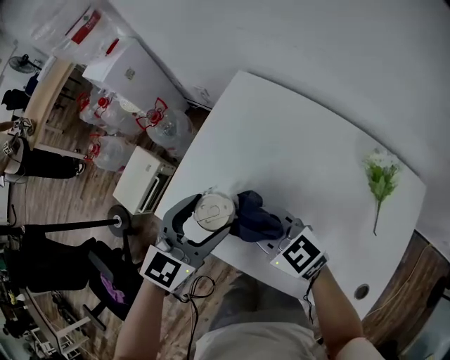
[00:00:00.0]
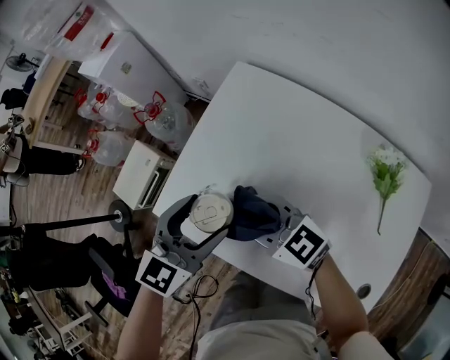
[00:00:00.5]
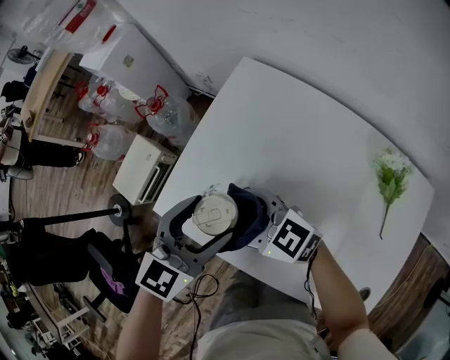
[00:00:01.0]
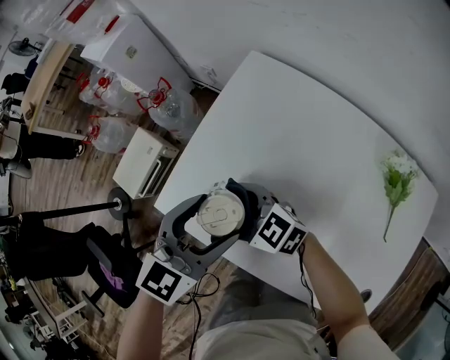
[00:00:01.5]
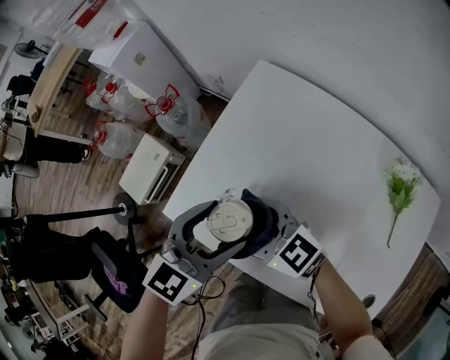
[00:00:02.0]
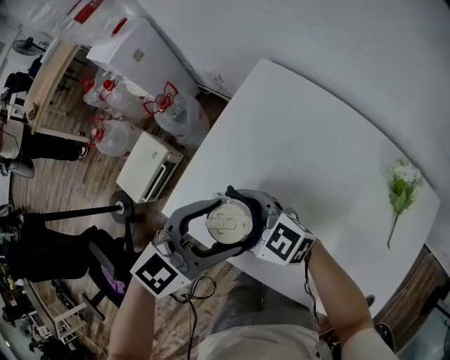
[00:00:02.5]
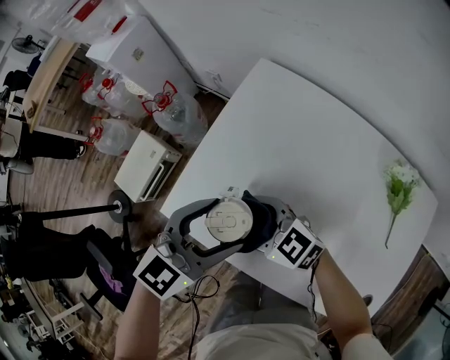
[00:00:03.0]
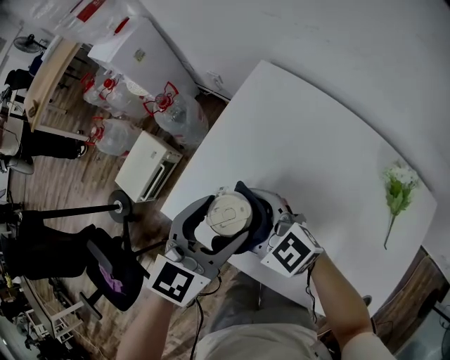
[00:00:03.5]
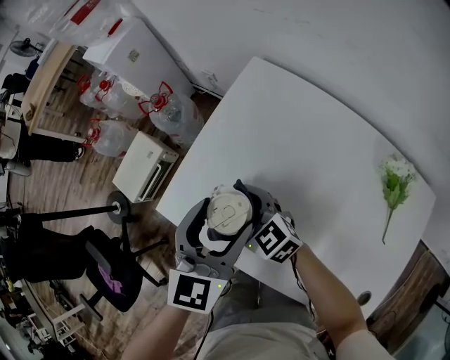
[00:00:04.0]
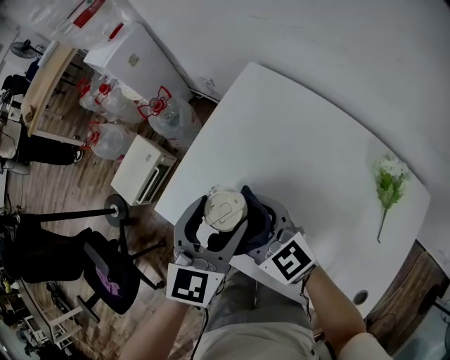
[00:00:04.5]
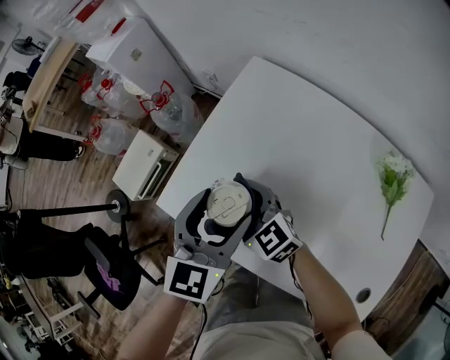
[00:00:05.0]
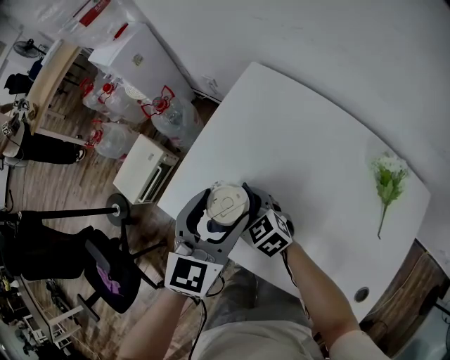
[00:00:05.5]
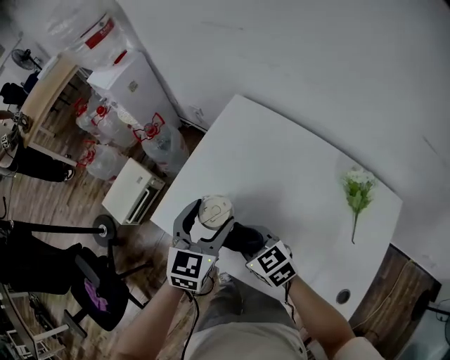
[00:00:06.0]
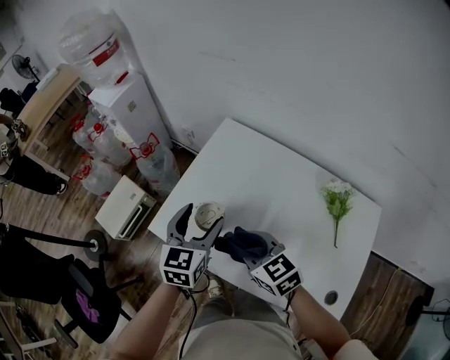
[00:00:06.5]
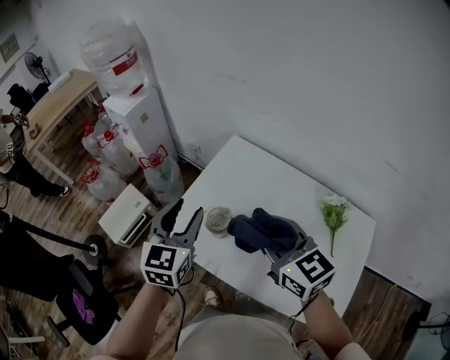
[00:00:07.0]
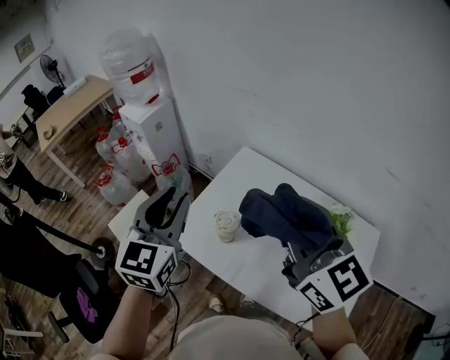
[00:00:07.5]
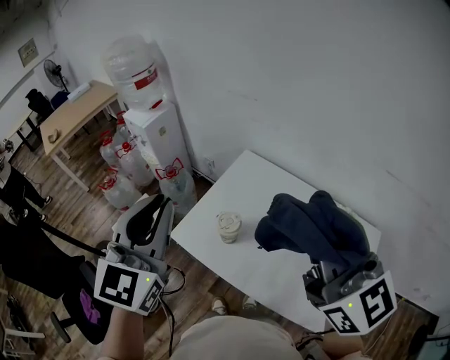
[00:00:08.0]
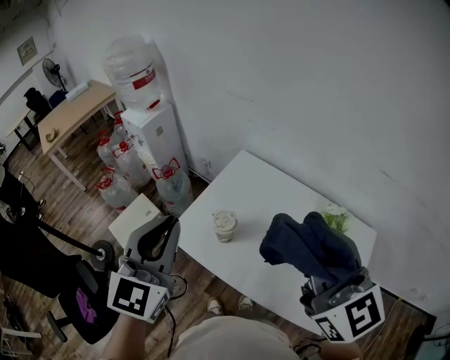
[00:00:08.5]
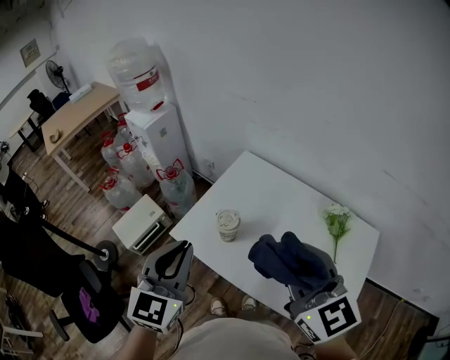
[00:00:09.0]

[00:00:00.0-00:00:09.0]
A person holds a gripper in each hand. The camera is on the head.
00:00:00.0 to 00:00:02.0: The right gripper goes roughly 5 cm to the left, and opens its fingers.
00:00:02.0 to 00:00:04.5: The left gripper rotates roughly 20 degrees. Meanwhile the right gripper goes up and down, about 10 cm each way, reversing 3 times.
00:00:04.5 to 00:00:07.0: The left gripper goes about 15 cm upward and to the left, and closes up. Meanwhile the right gripper shifts some 20 cm upward, swivels roughly 20 degrees, and closes its fingers.
00:00:07.0 to 00:00:09.0: The grippers both shift backward and upward by approximately 15 cm. The left gripper closes up.

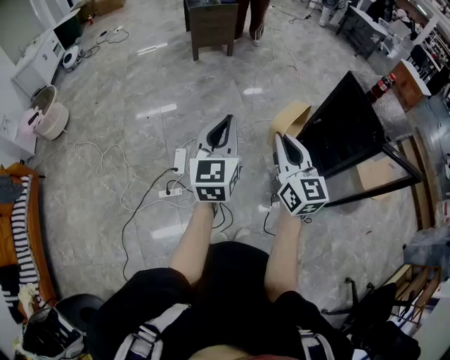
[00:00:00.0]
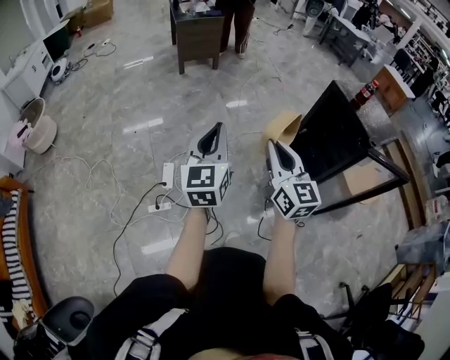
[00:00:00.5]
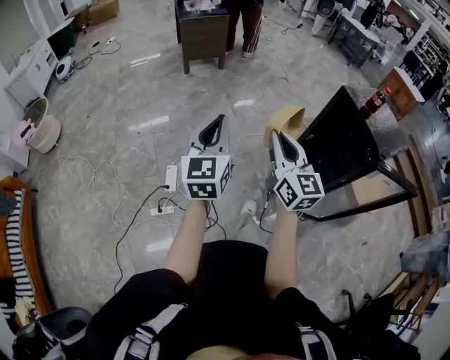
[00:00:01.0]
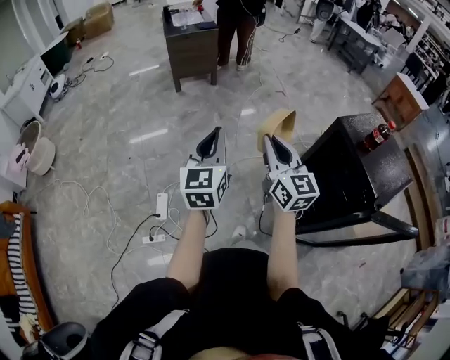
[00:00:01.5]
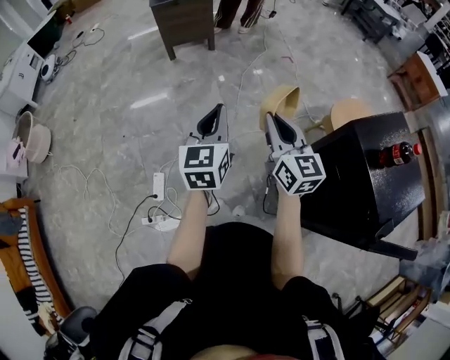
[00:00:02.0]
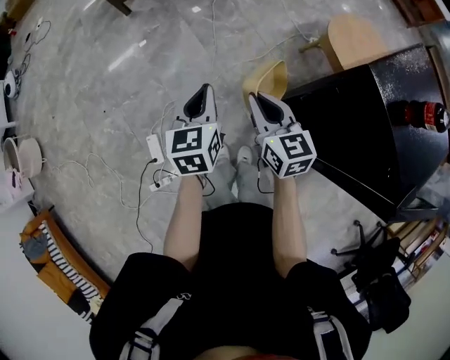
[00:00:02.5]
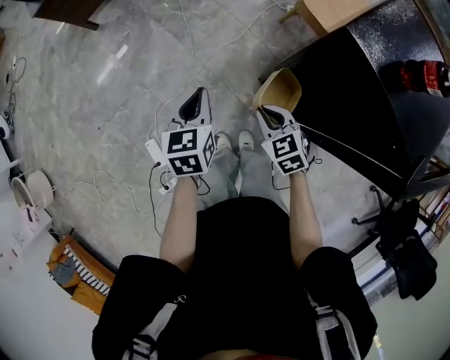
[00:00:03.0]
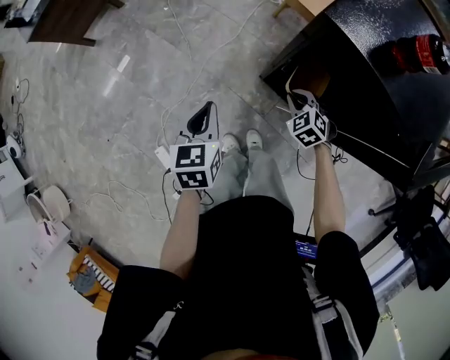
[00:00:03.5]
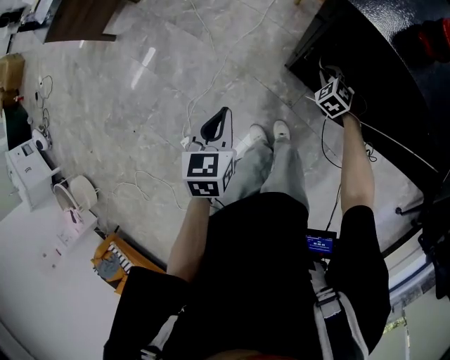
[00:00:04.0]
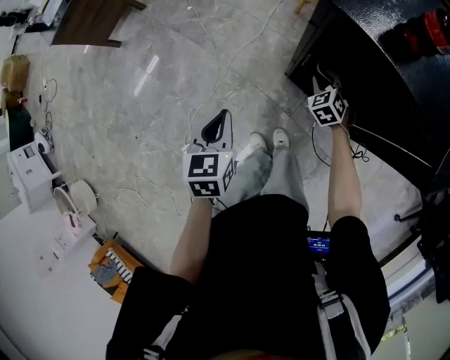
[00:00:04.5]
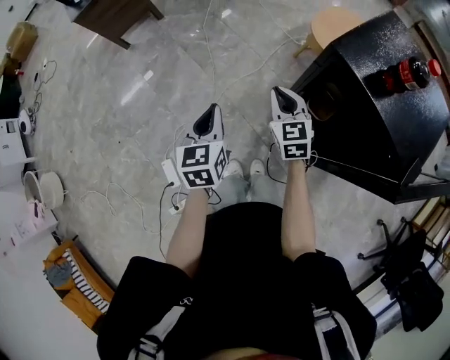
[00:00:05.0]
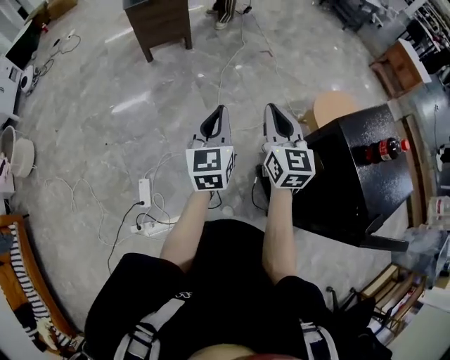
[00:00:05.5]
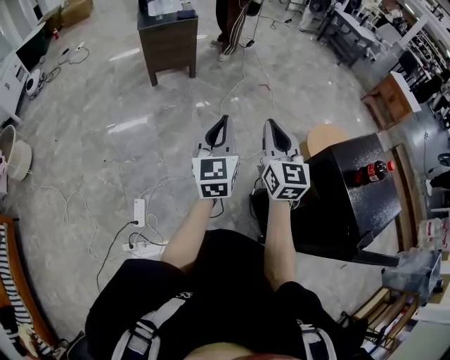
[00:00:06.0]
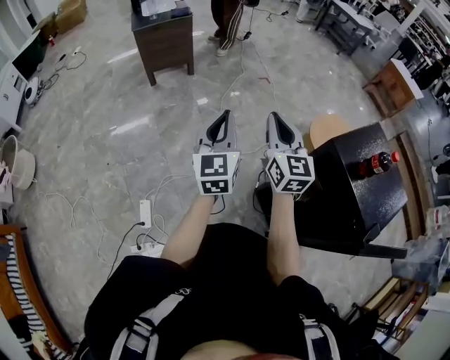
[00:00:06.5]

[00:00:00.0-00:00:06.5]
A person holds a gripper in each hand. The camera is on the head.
00:00:00.0 to 00:00:02.0: The pair of grippers is taken forward and to the right, approximately 50 cm.
00:00:02.0 to 00:00:04.5: The right gripper travels downward by some 40 cm, and points its fingers approximately 50 degrees further downward; the left gripper travels downward by some 20 cm, and points its fingers some 30 degrees further downward.
00:00:04.5 to 00:00:06.5: The left gripper travels upward by some 25 cm, and points its fingers about 40 degrees further upward. The right gripper shifts roughly 50 cm upward, and tilts its fingers approximately 50 degrees upward.

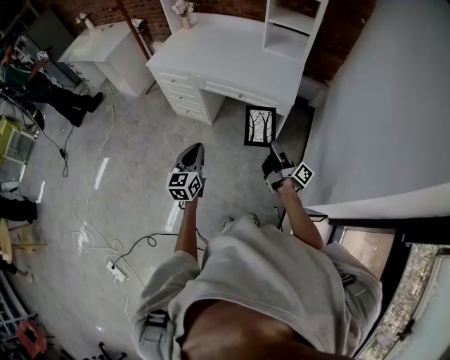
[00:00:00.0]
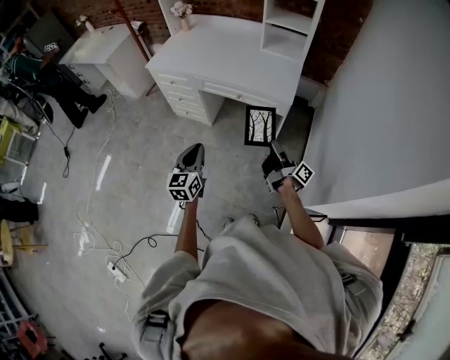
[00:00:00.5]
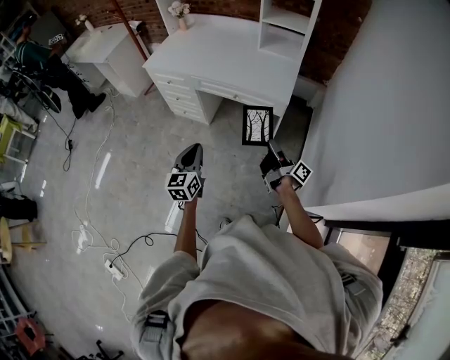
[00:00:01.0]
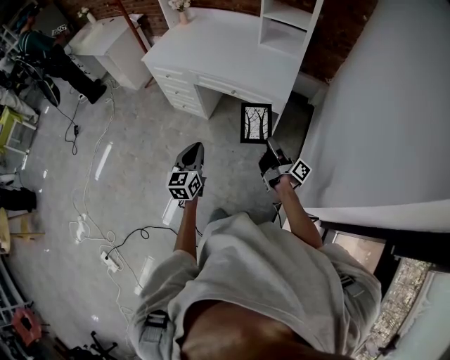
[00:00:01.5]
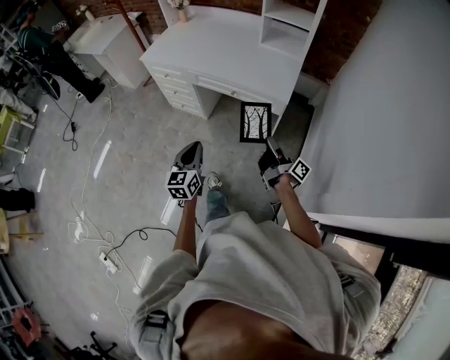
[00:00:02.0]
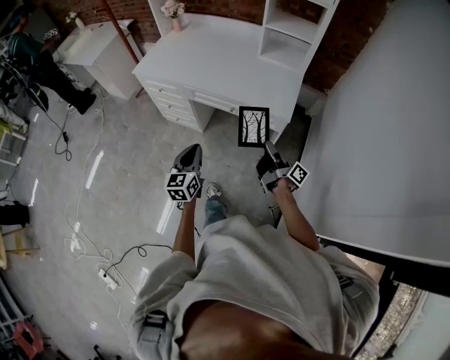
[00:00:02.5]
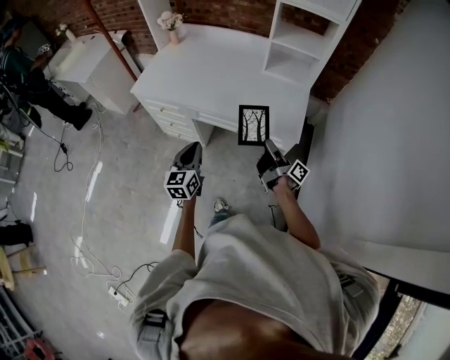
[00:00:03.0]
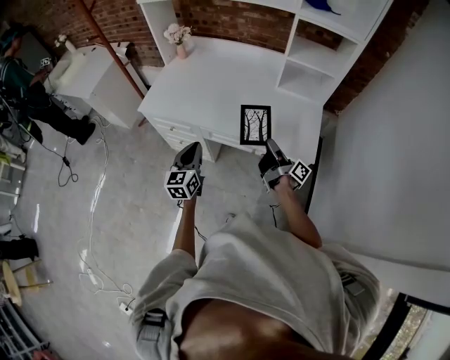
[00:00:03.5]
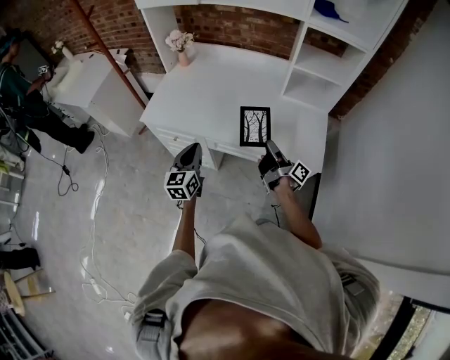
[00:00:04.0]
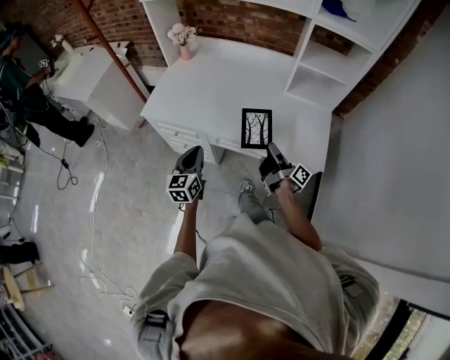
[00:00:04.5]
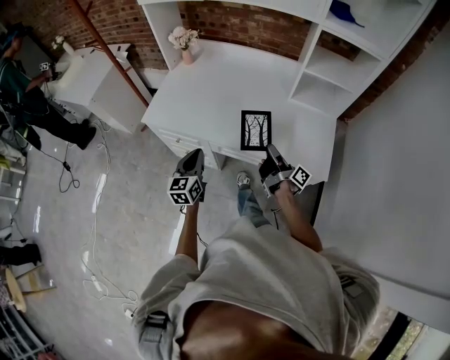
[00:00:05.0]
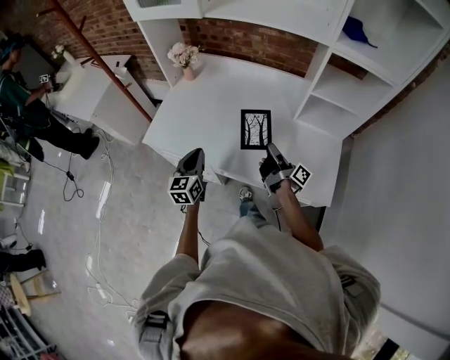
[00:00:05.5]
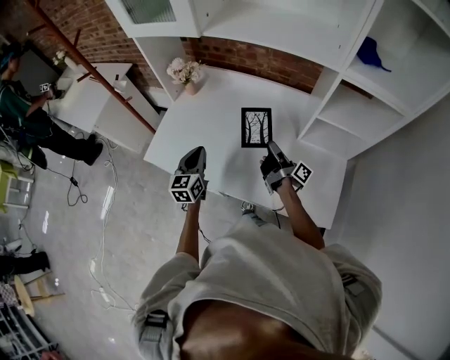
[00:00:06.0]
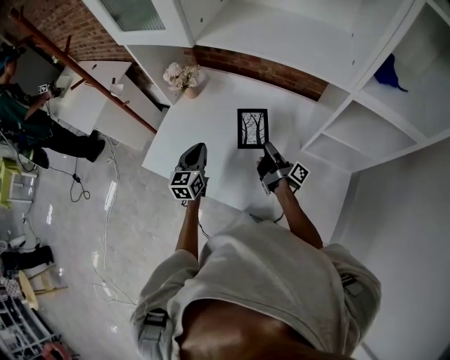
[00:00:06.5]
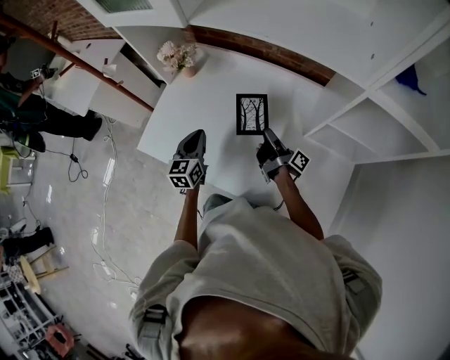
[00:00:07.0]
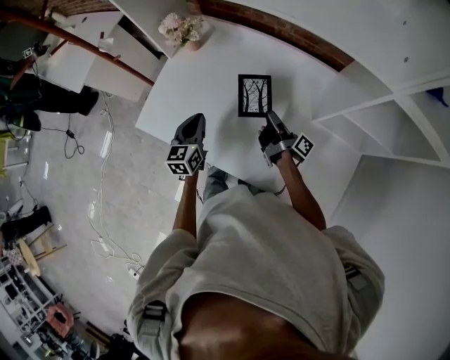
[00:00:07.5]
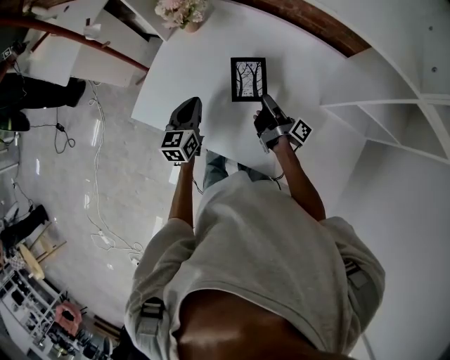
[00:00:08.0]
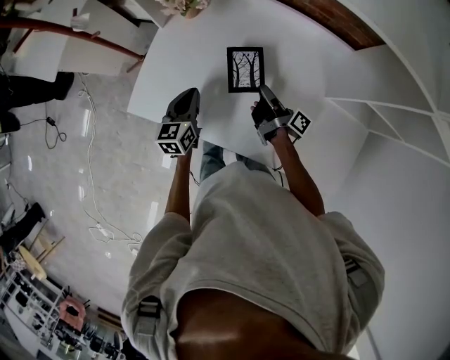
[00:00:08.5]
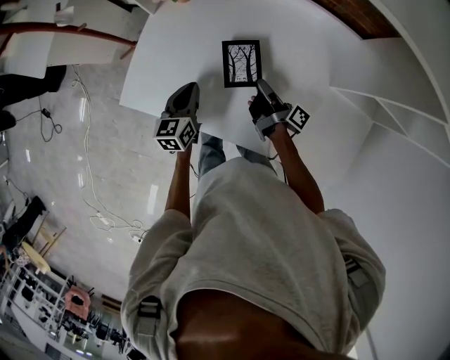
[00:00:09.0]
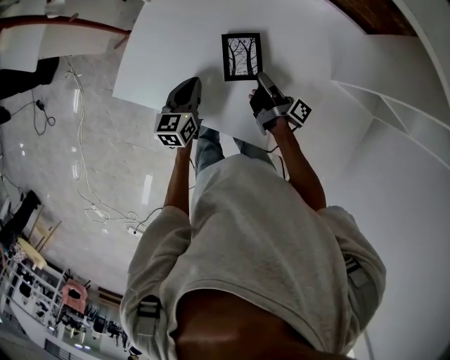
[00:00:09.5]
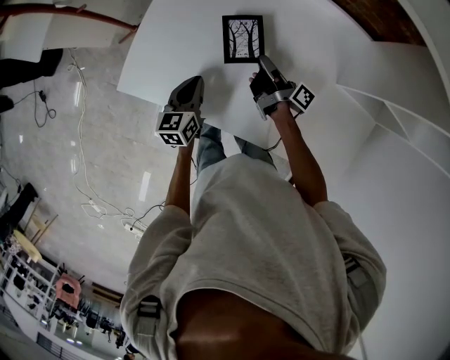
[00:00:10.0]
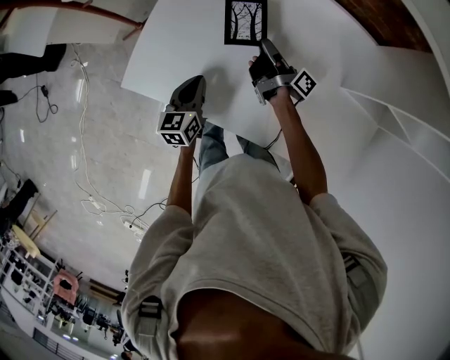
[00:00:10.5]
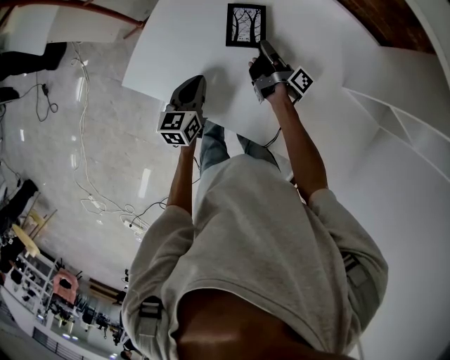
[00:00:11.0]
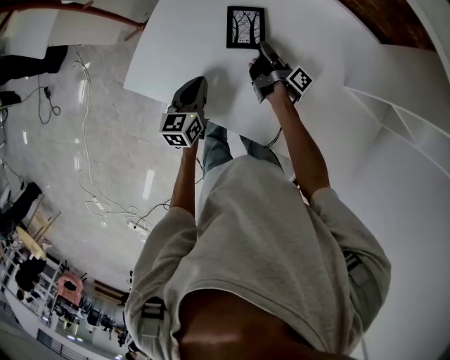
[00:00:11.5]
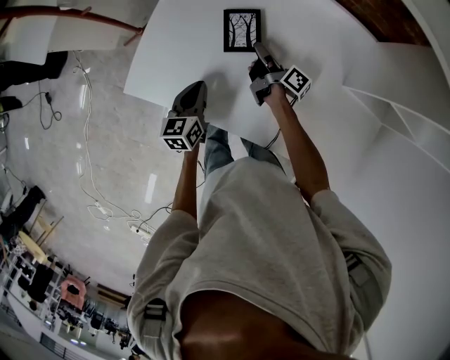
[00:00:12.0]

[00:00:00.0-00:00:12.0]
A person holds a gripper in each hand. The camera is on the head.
00:00:00.0 to 00:00:02.0: The left gripper shifts by some 5 cm.
00:00:02.0 to 00:00:04.0: The left gripper ends up approximately 40 cm from where it was.
00:00:04.0 to 00:00:06.0: The left gripper moves approximately 25 cm.
00:00:06.0 to 00:00:08.0: The left gripper ends up roughly 10 cm from where it was.
00:00:08.0 to 00:00:10.0: The left gripper travels downward by some 10 cm.
